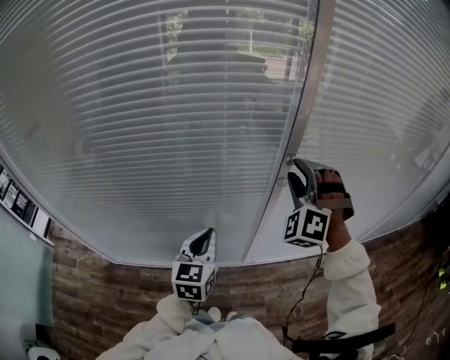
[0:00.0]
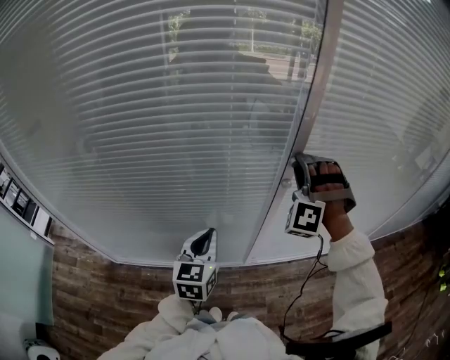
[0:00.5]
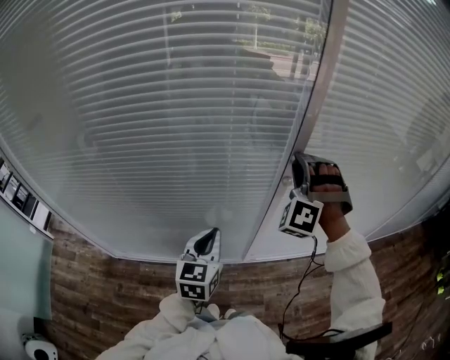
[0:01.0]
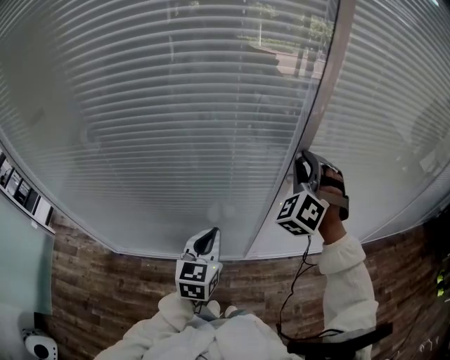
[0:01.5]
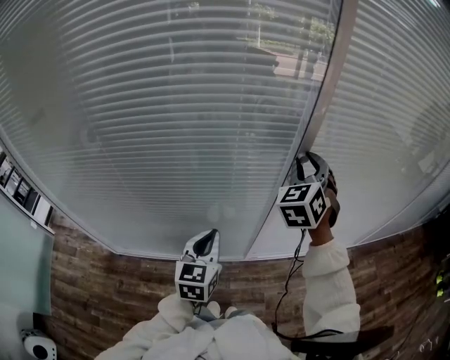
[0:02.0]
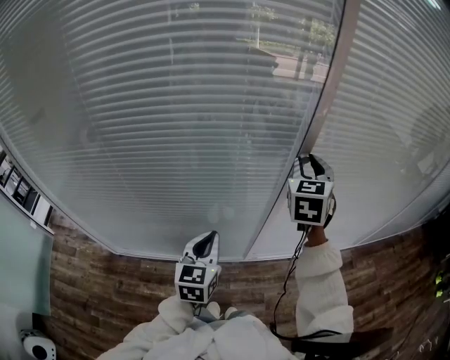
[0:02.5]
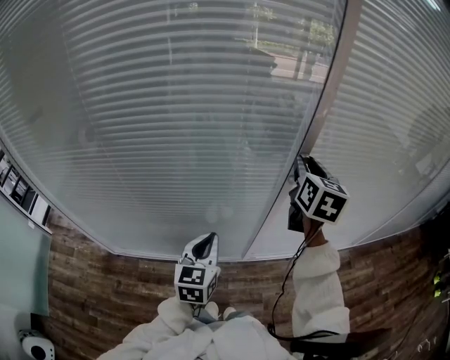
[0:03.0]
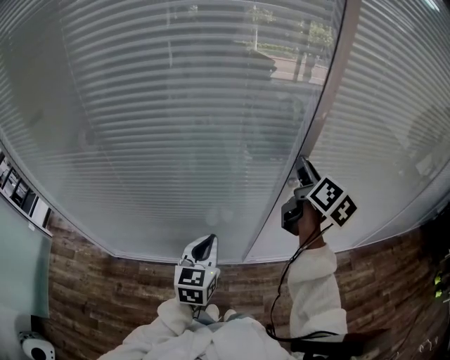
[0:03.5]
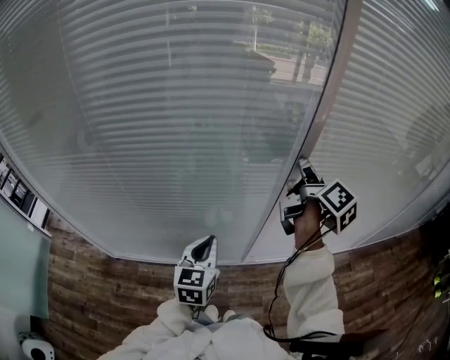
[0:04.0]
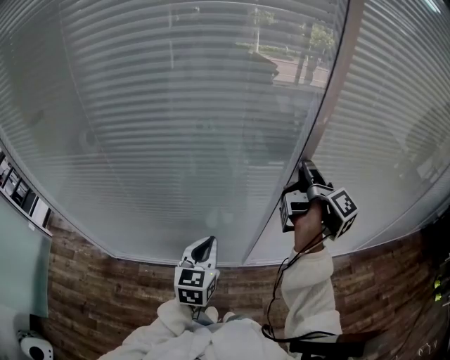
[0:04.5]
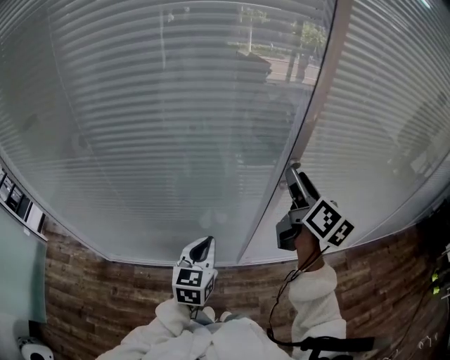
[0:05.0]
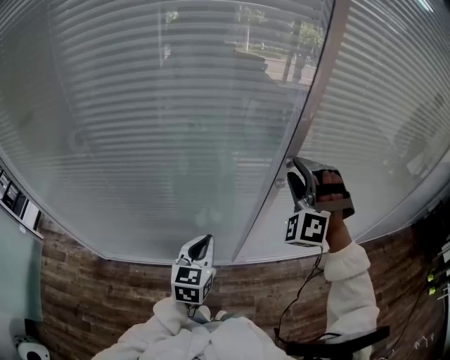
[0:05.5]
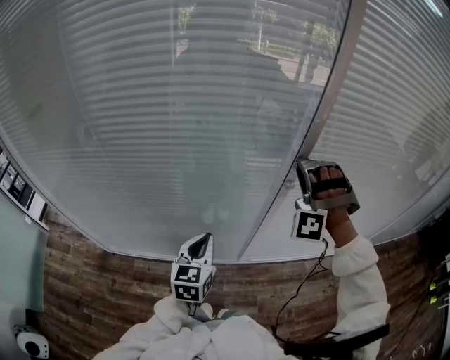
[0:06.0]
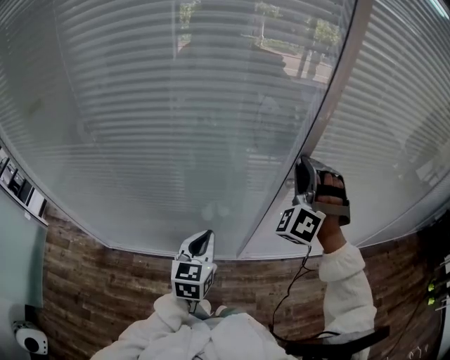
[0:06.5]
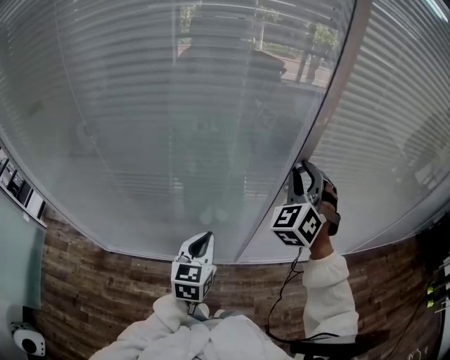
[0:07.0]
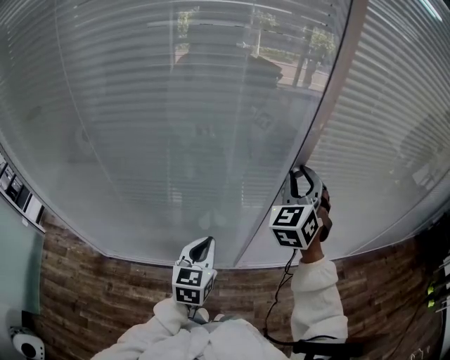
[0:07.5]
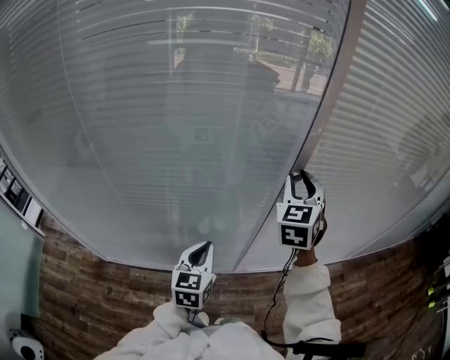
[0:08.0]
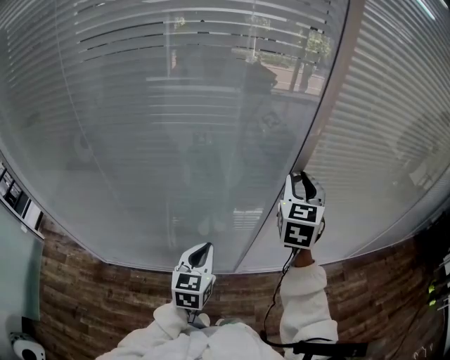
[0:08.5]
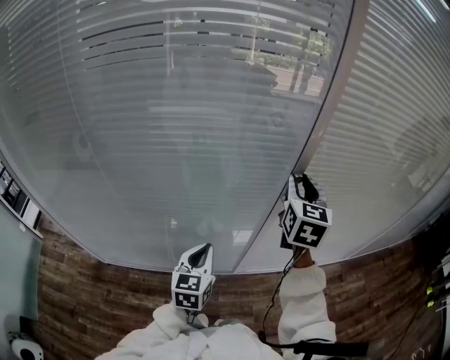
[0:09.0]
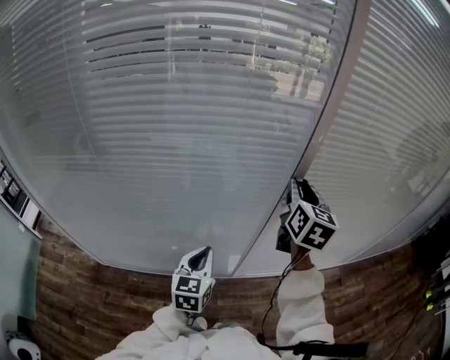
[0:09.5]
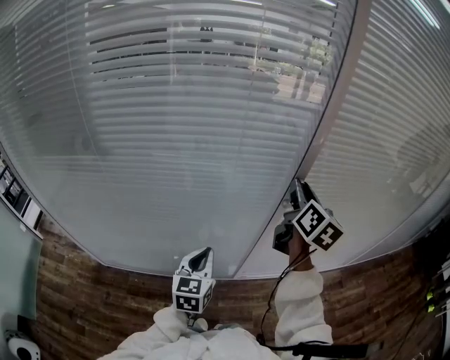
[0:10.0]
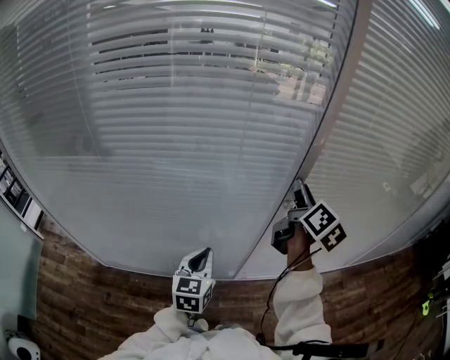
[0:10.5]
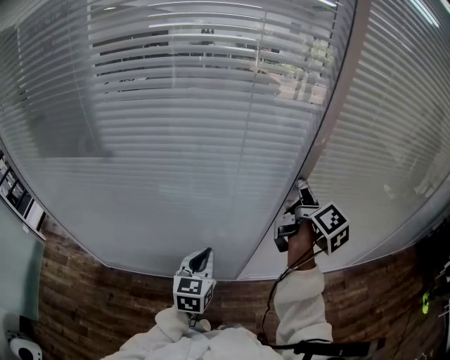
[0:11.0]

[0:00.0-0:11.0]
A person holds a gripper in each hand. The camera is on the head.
0:00.0 to 0:02.0: The right gripper rolls clockwise, seen from behind, by roughly 40 degrees.
0:02.0 to 0:03.5: The right gripper rolls clockwise, seen from behind, by about 80 degrees.
0:03.5 to 0:05.5: The right gripper rolls counterclockwise, seen from behind, by approximately 130 degrees.
0:05.5 to 0:07.5: The right gripper twists some 50 degrees clockwise, seen from behind.
0:07.5 to 0:09.0: The right gripper rolls clockwise, seen from behind, by some 40 degrees.
0:09.0 to 0:11.0: The right gripper rotates around the line of its fingers by some 60 degrees, clockwise from behind.

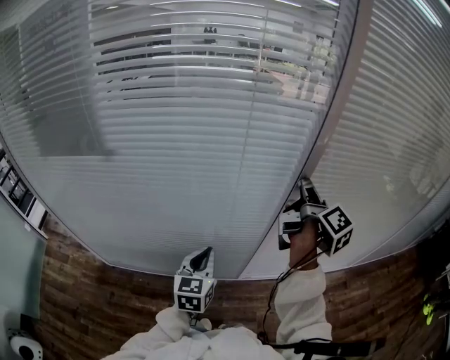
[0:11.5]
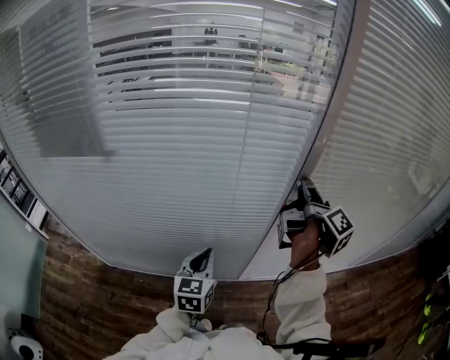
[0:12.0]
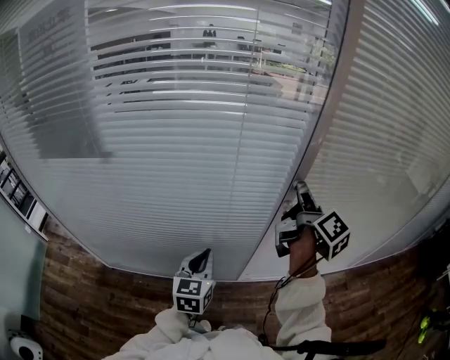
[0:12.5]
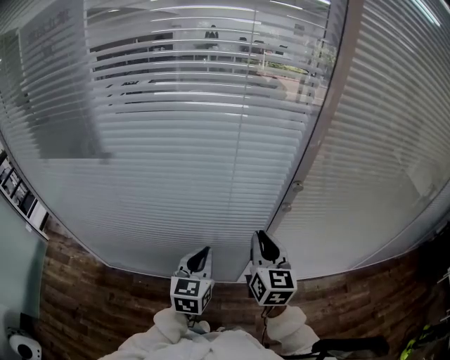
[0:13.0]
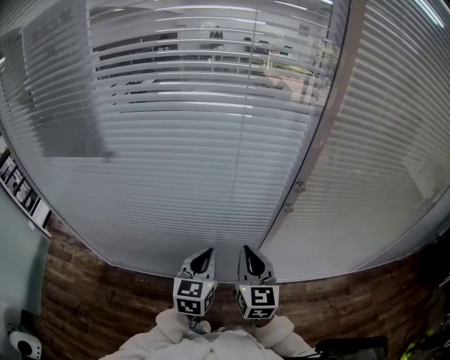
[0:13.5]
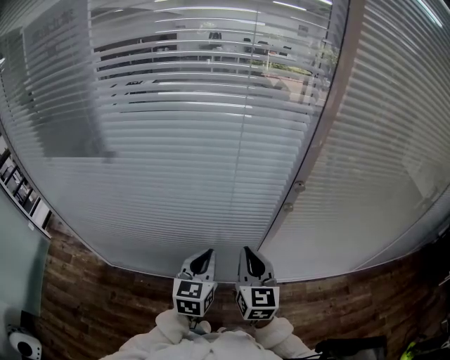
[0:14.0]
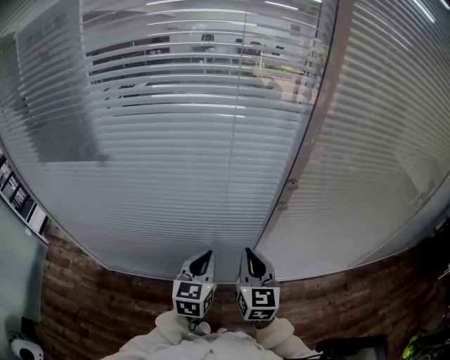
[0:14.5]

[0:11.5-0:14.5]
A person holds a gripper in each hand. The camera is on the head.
0:11.5 to 0:13.0: The right gripper heads downward, backward and to the left, covering about 15 cm, and rolls counterclockwise, seen from behind, by roughly 60 degrees.
0:13.0 to 0:14.5: The right gripper moves about 5 cm.

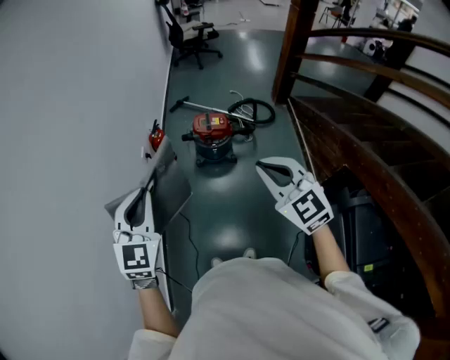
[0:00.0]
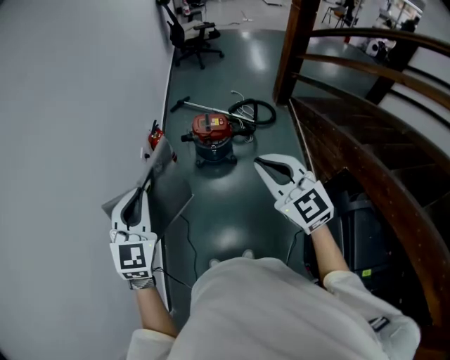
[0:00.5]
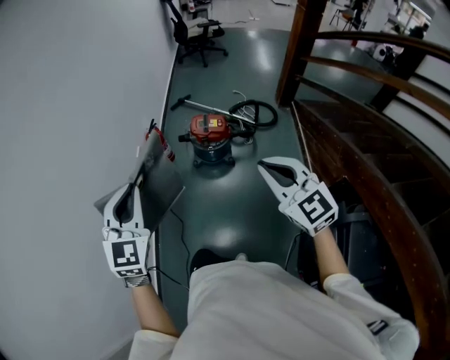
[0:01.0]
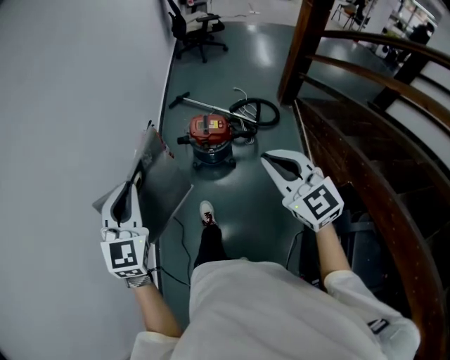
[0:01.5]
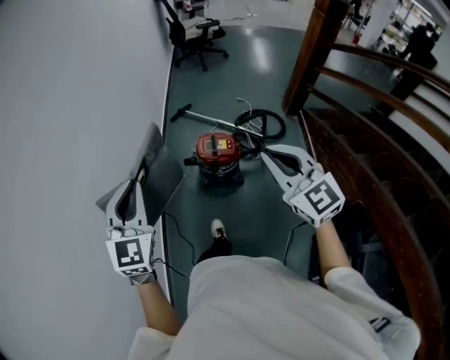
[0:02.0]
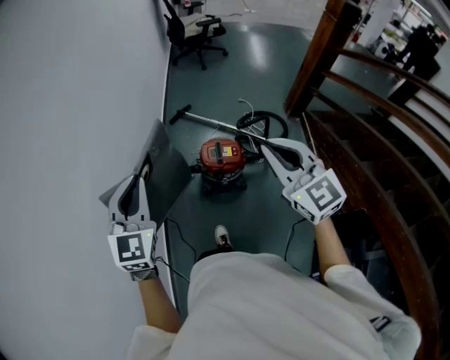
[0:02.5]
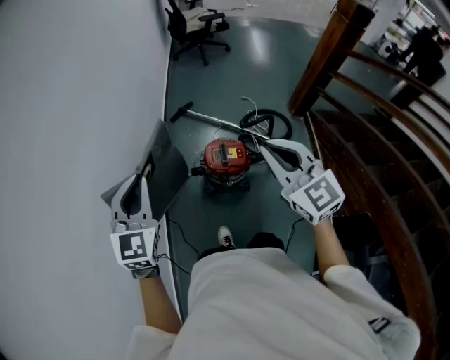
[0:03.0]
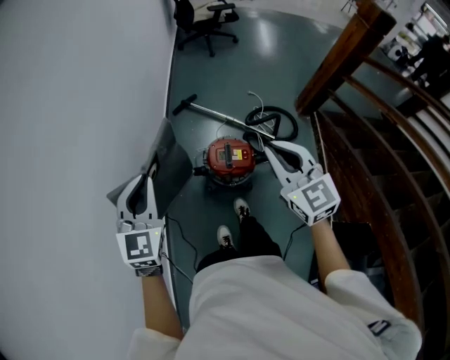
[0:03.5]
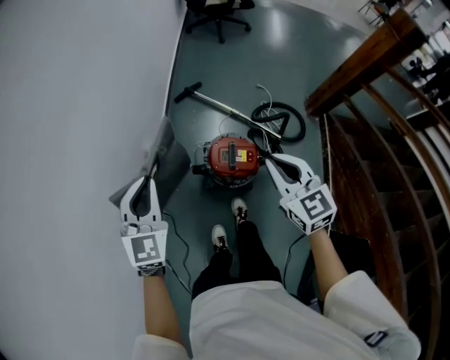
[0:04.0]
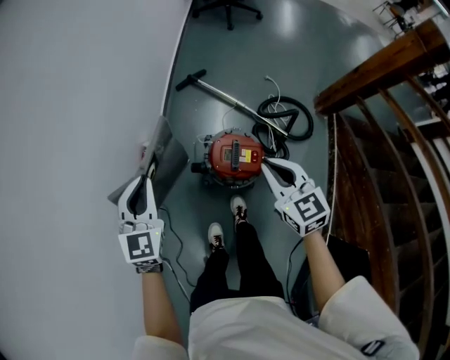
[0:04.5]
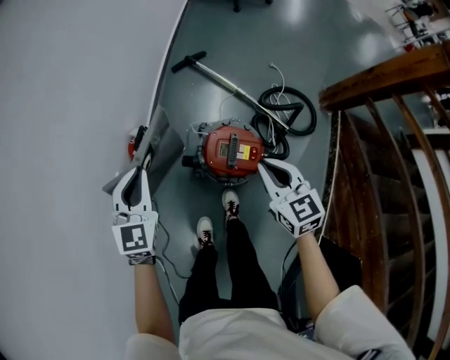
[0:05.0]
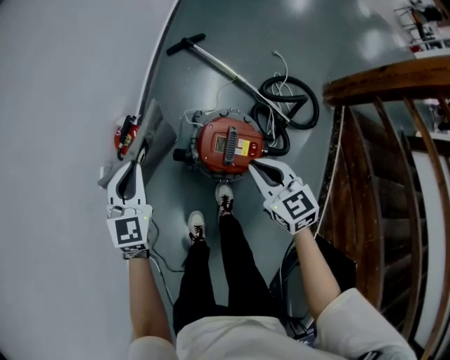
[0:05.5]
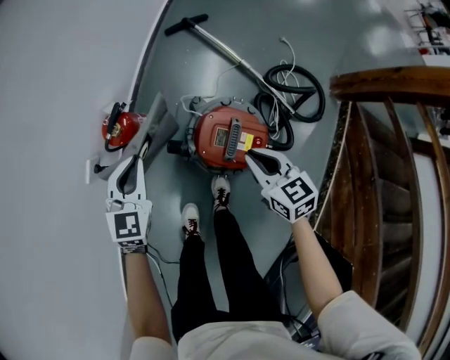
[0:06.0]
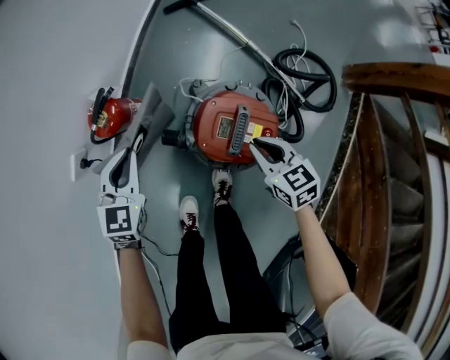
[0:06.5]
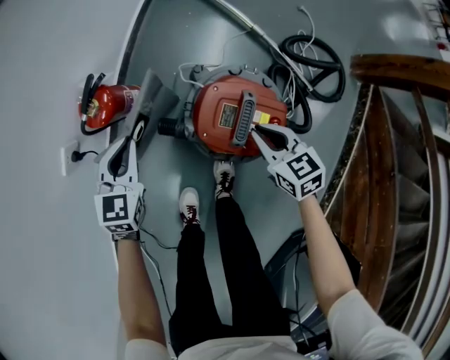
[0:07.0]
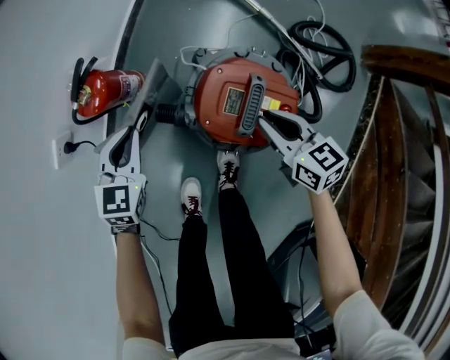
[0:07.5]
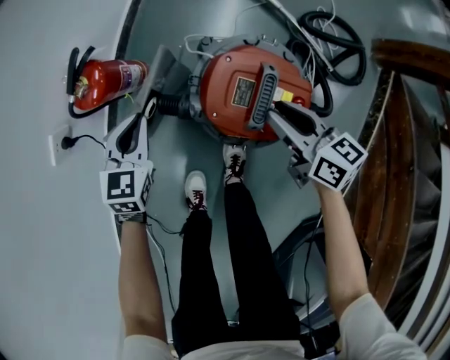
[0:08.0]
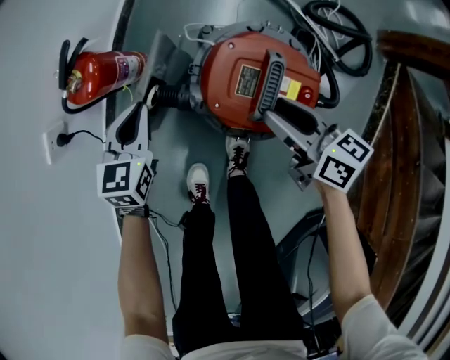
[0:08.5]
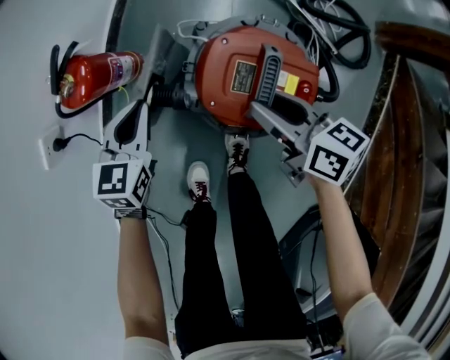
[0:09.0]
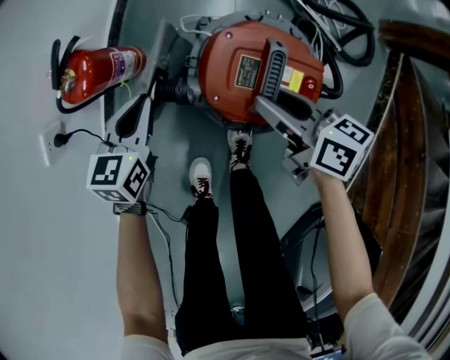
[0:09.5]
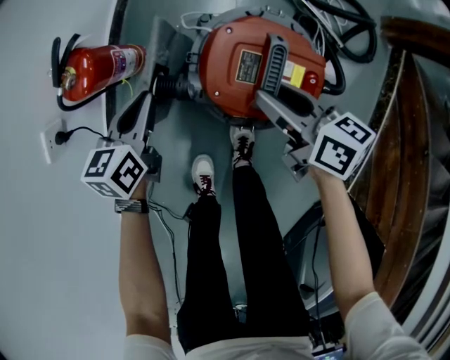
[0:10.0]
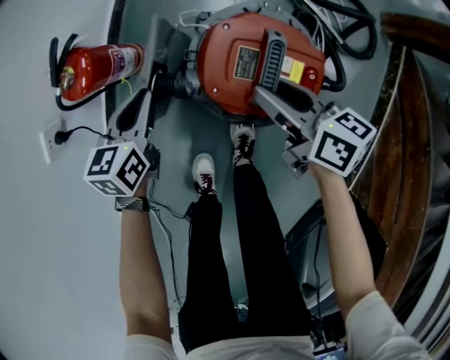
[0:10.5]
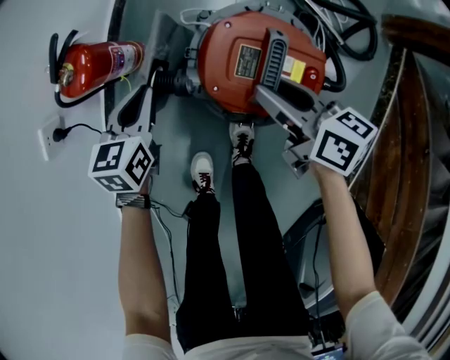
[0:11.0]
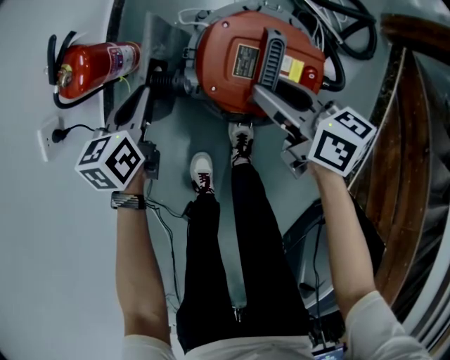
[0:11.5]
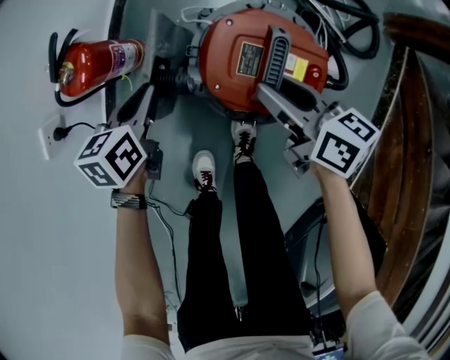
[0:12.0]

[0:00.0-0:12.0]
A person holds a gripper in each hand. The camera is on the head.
0:00.0 to 0:02.0: The grippers both shift forward by about 25 cm.
0:02.0 to 0:04.0: The two grippers go about 35 cm forward and downward.
0:04.0 to 0:06.0: The two grippers go roughly 35 cm downward. The right gripper turns by some 30 degrees.
0:06.0 to 0:08.0: The grippers both shift downward by approximately 15 cm. The right gripper swivels approximately 20 degrees, and opens up.
0:08.0 to 0:10.0: The left gripper changes its angle by some 30 degrees.
0:10.0 to 0:12.0: The grippers move only a little.

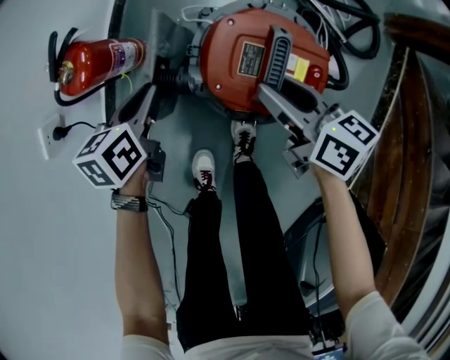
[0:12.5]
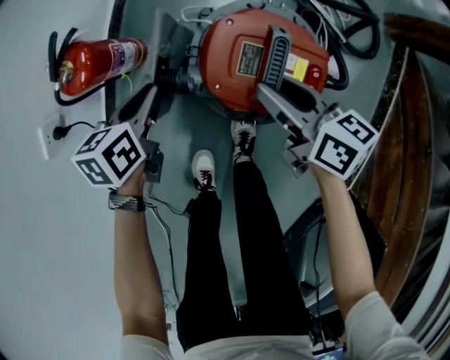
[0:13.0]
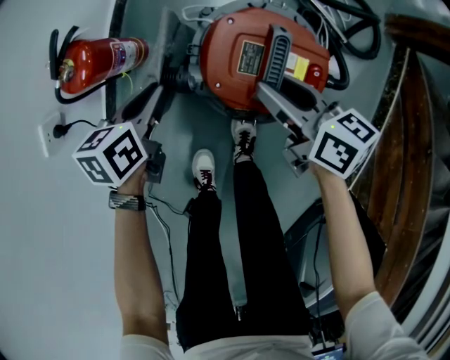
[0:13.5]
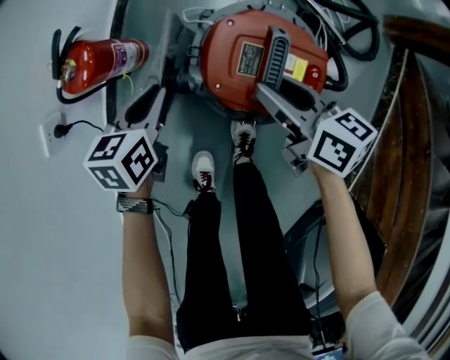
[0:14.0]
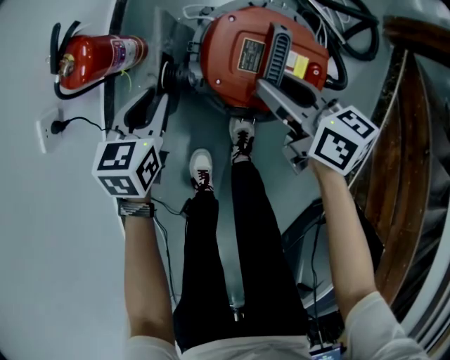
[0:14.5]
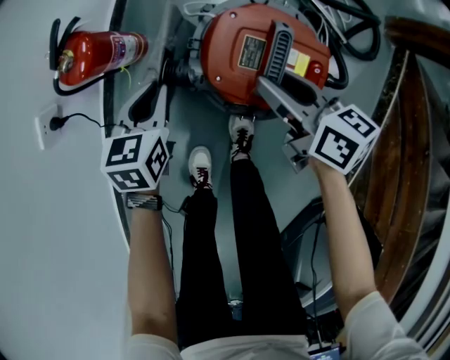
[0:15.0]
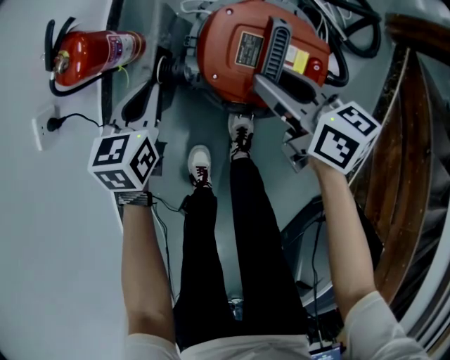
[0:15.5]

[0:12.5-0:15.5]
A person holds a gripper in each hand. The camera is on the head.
0:12.5 to 0:14.0: There are only small adjustments of the grippers.
0:14.0 to 0:15.5: The grippers move only a little.
